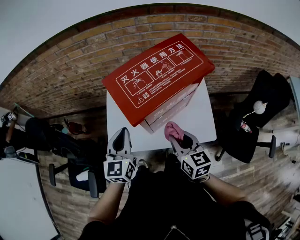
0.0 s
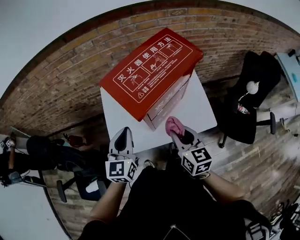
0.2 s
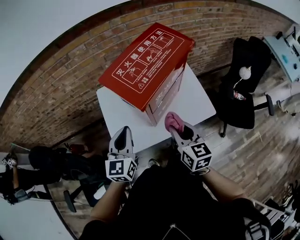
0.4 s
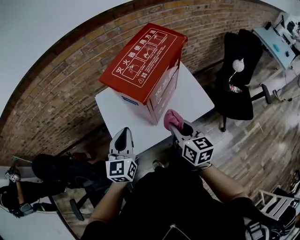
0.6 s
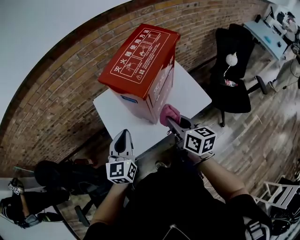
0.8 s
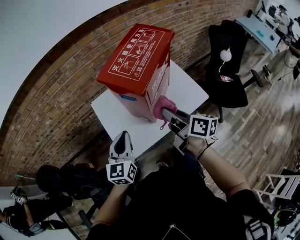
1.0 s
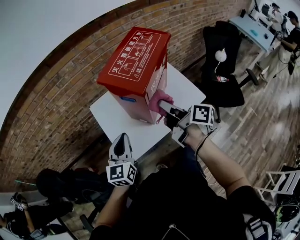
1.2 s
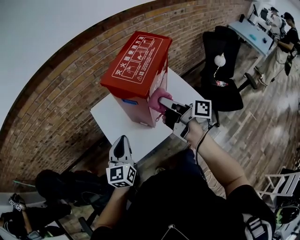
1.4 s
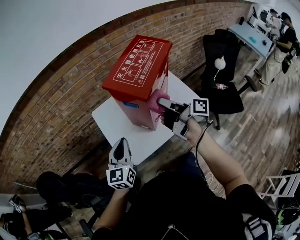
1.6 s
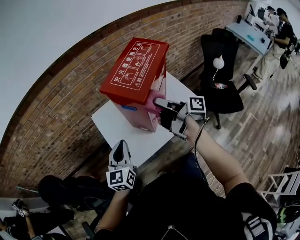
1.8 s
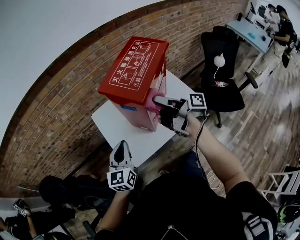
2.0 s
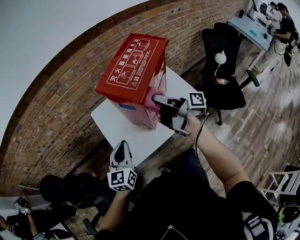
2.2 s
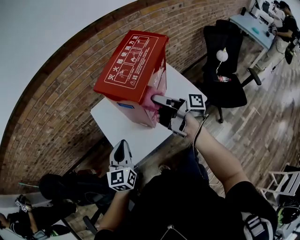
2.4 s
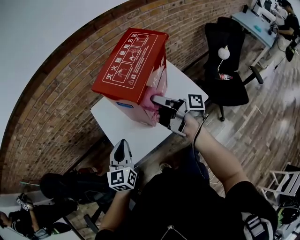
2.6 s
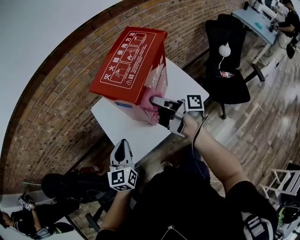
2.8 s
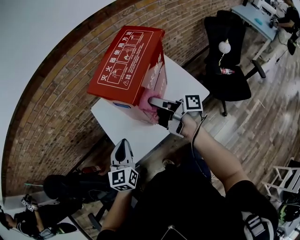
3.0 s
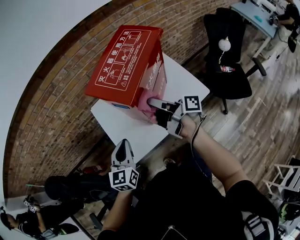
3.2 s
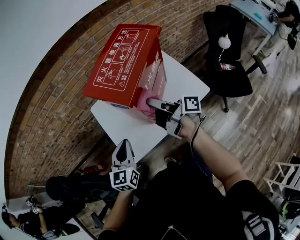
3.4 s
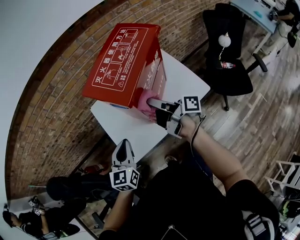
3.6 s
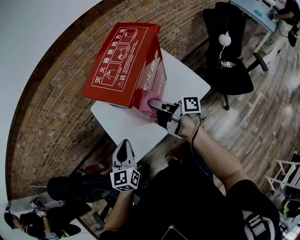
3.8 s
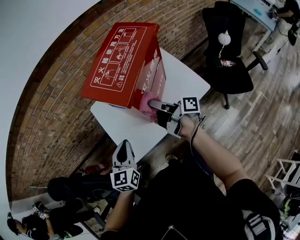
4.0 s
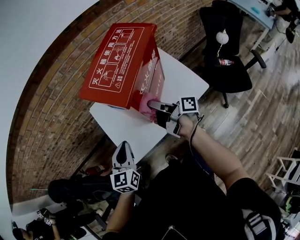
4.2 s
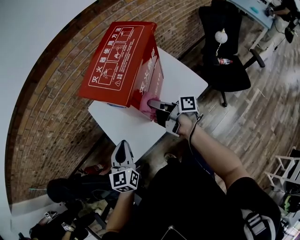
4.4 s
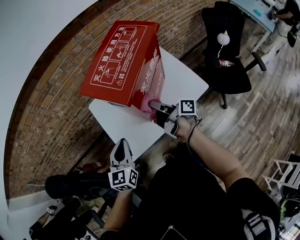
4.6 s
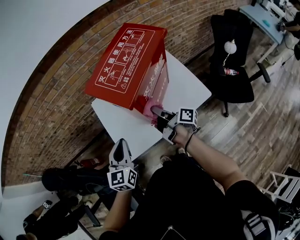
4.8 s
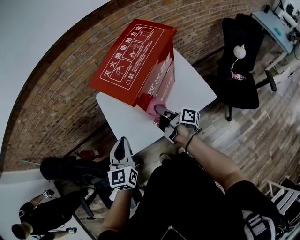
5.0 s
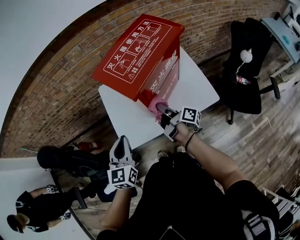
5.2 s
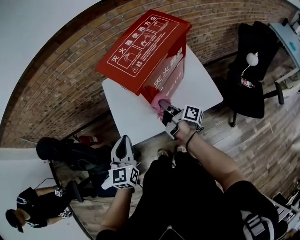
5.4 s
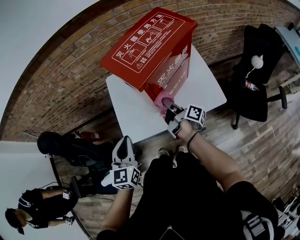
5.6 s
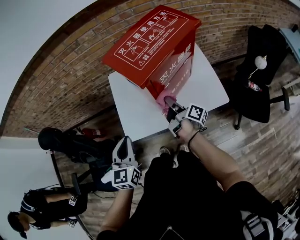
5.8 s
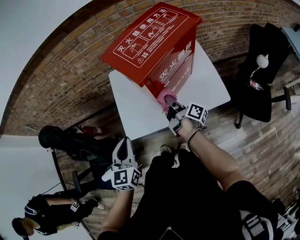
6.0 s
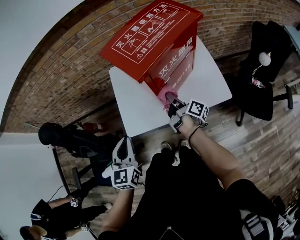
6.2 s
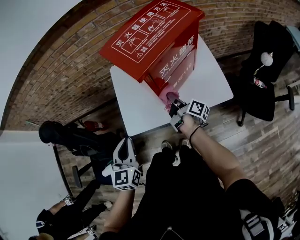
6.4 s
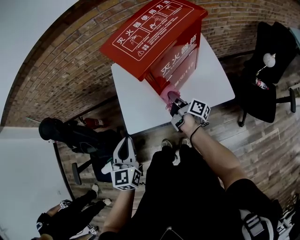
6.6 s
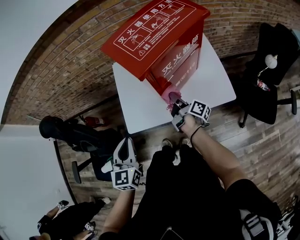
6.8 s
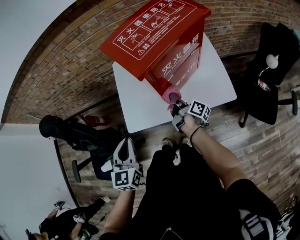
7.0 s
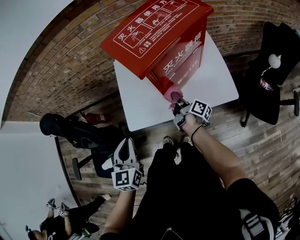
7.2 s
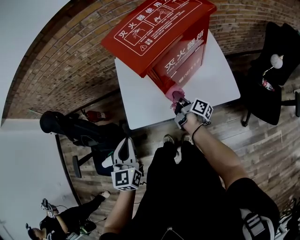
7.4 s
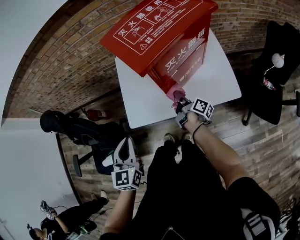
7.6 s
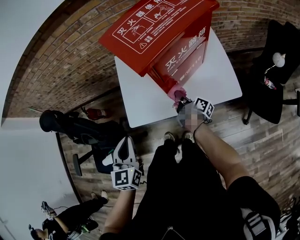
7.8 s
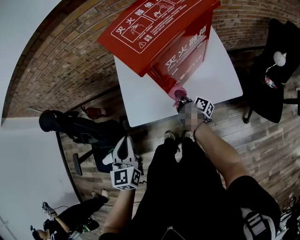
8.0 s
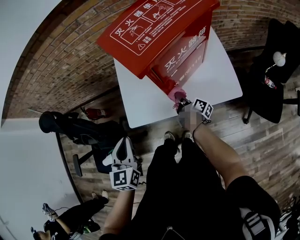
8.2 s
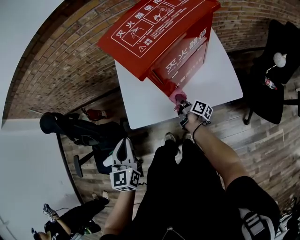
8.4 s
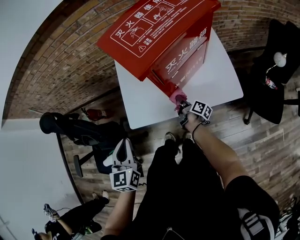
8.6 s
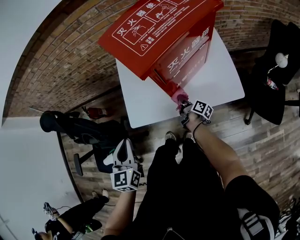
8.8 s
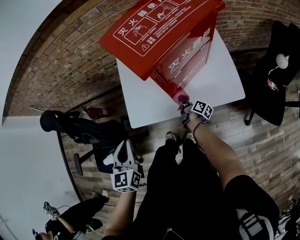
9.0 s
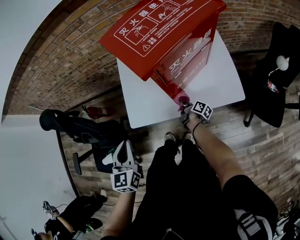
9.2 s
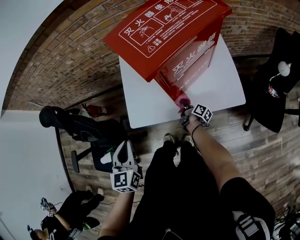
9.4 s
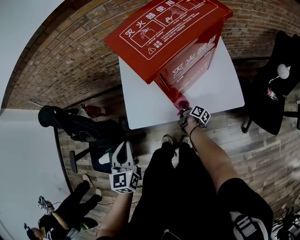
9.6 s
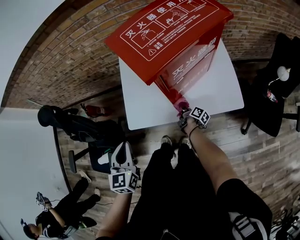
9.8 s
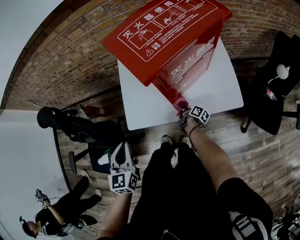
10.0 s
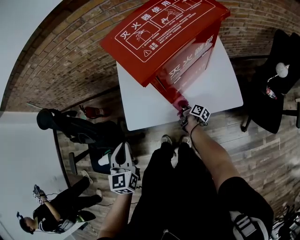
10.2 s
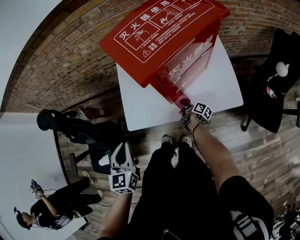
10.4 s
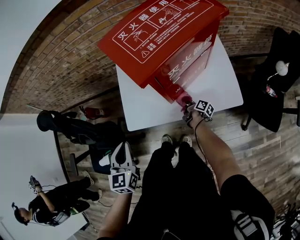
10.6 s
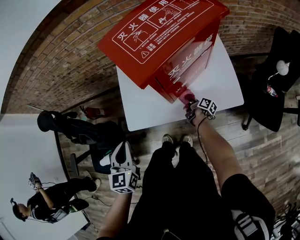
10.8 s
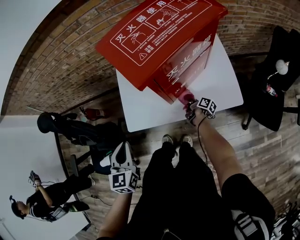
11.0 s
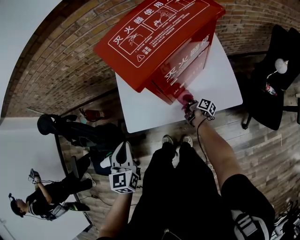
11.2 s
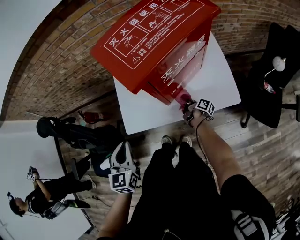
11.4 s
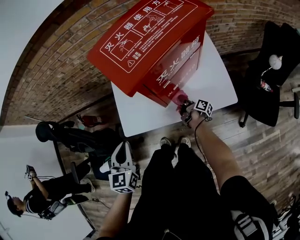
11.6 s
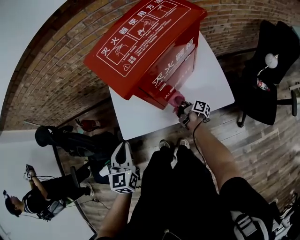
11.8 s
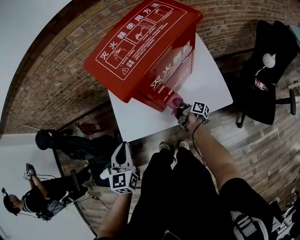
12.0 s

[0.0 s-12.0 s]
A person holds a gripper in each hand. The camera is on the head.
0.0 to 1.6 s: The left gripper shifts by roughly 10 cm, and changes its angle by some 20 degrees.
4.4 to 6.0 s: The left gripper changes place by some 10 cm, and turns by about 20 degrees.
10.4 to 12.0 s: The left gripper moves roughly 5 cm.

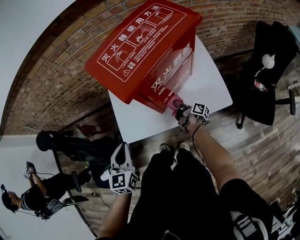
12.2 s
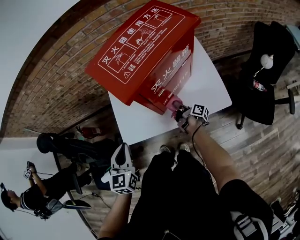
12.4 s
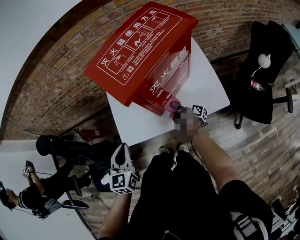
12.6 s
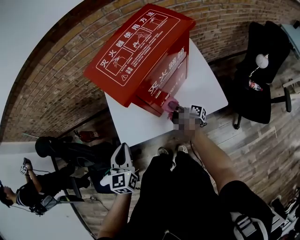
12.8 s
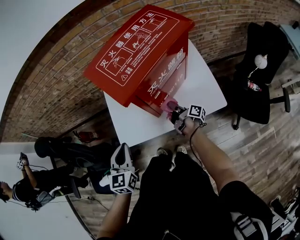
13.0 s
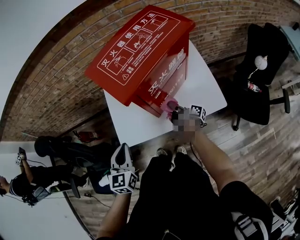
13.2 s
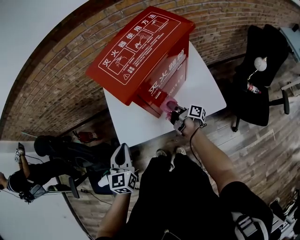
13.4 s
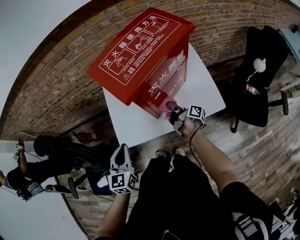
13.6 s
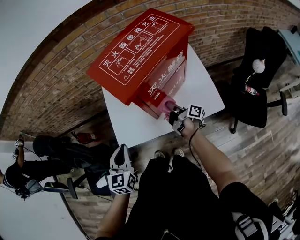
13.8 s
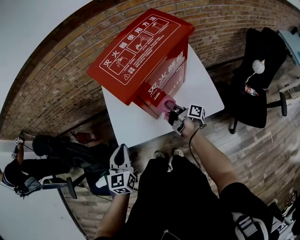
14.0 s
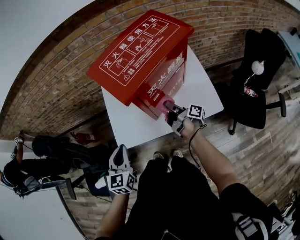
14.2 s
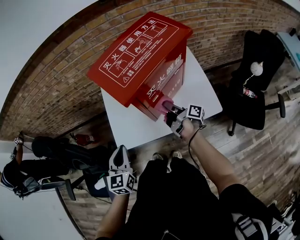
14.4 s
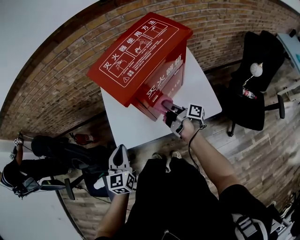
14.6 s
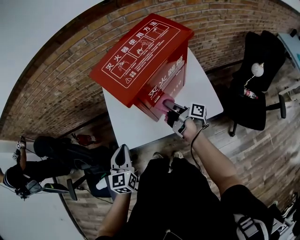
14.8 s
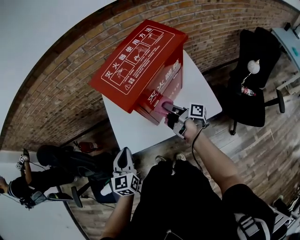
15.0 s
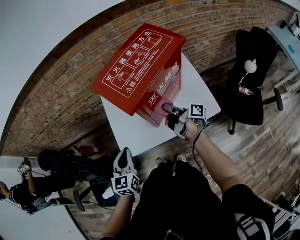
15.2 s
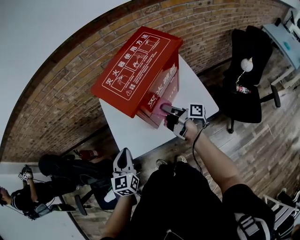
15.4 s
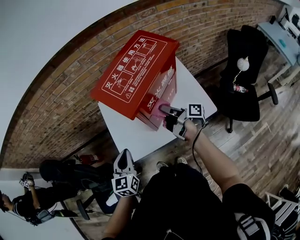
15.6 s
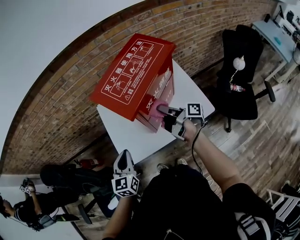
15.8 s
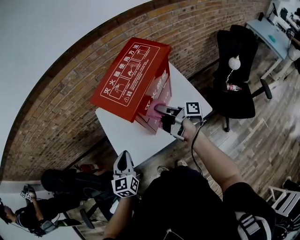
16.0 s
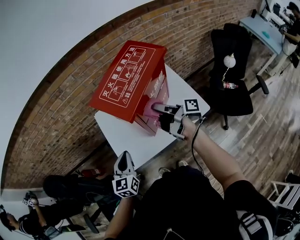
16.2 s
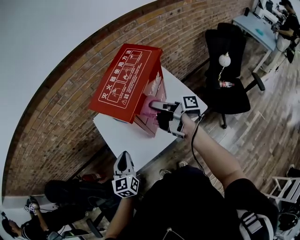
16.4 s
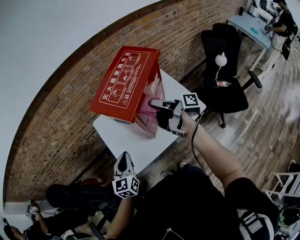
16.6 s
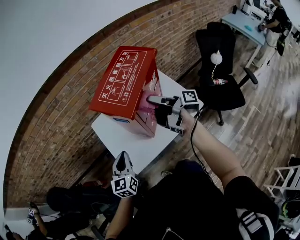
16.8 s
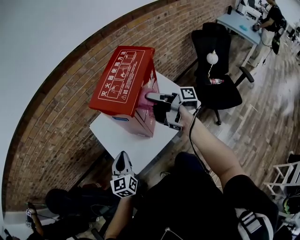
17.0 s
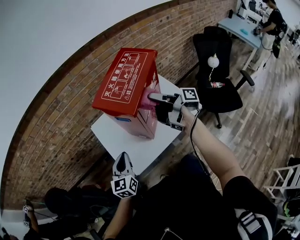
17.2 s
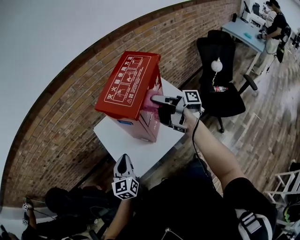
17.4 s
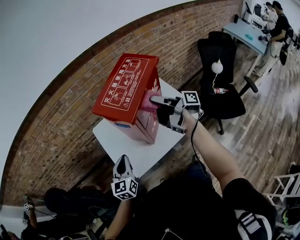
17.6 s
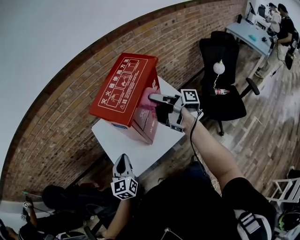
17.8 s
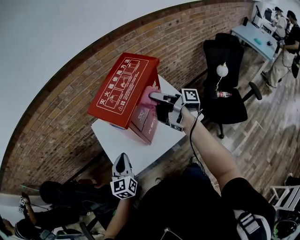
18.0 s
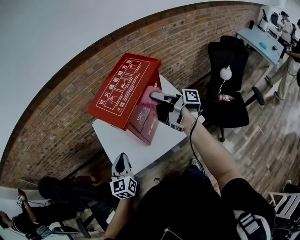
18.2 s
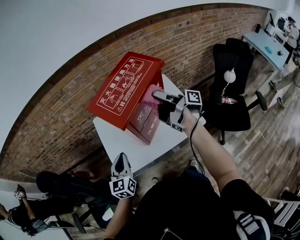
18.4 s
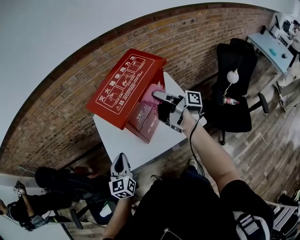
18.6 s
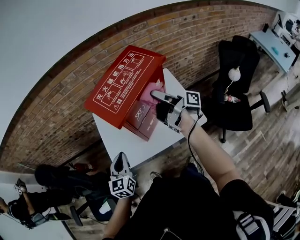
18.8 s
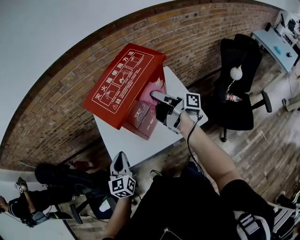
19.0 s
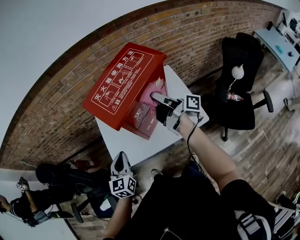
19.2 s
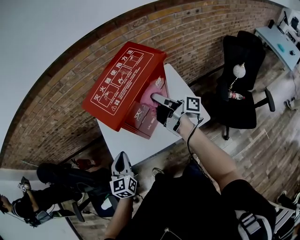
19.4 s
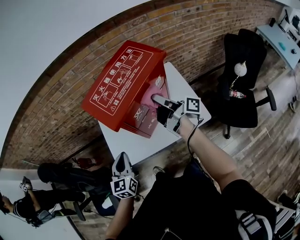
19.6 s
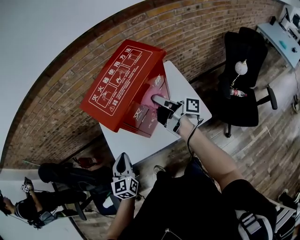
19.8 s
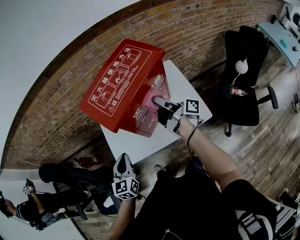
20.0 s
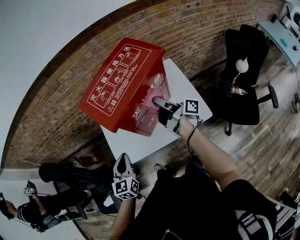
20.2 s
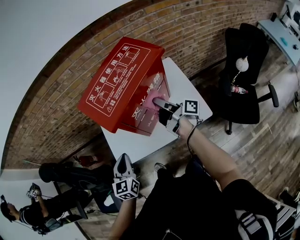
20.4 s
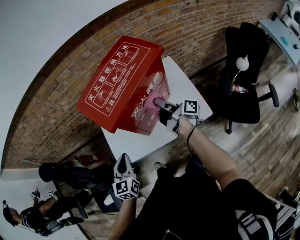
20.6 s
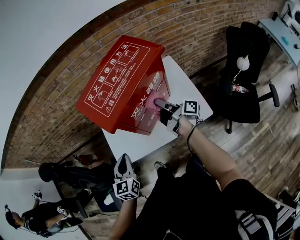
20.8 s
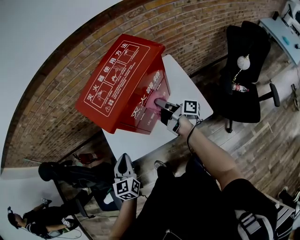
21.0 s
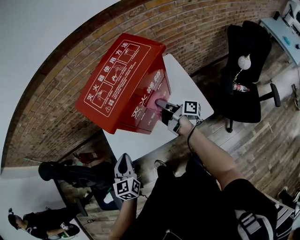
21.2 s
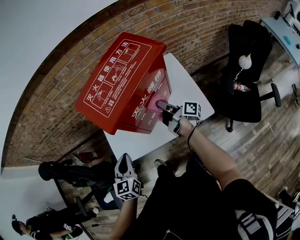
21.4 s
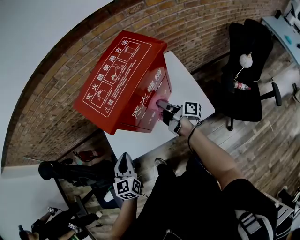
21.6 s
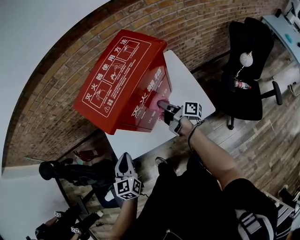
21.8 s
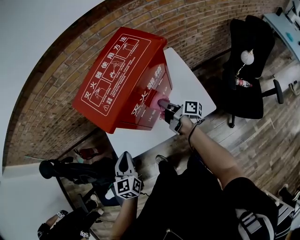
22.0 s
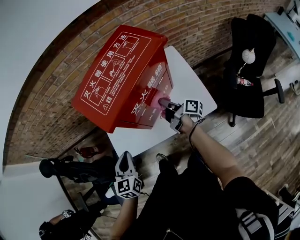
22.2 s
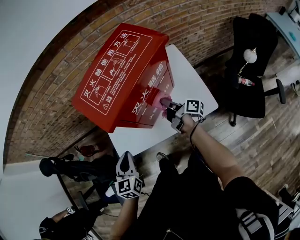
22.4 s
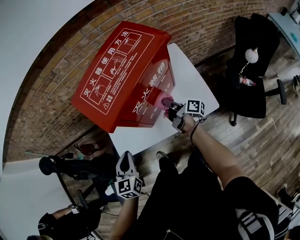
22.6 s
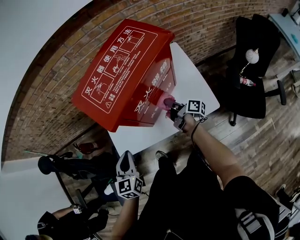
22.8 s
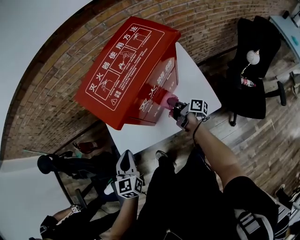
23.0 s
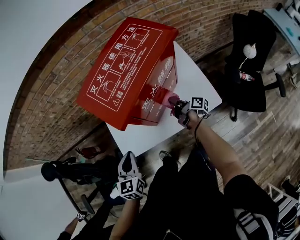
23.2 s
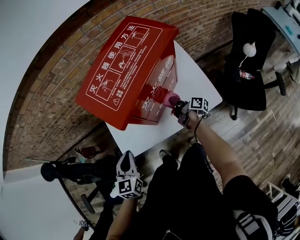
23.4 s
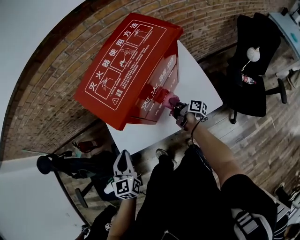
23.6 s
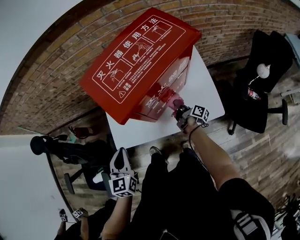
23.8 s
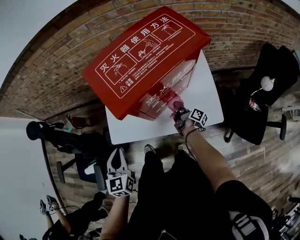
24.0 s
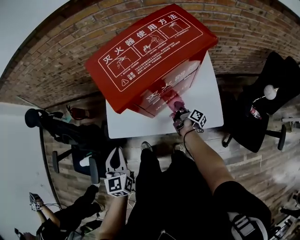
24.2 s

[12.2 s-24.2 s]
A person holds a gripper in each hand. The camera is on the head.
22.6 to 24.2 s: The left gripper shifts by roughly 5 cm.

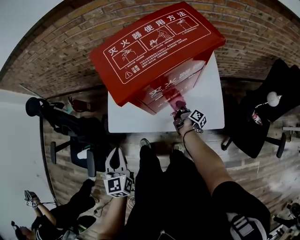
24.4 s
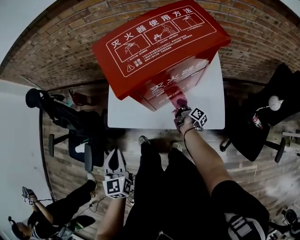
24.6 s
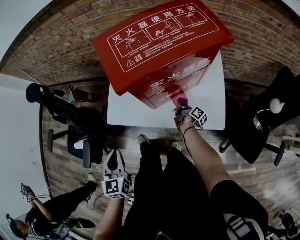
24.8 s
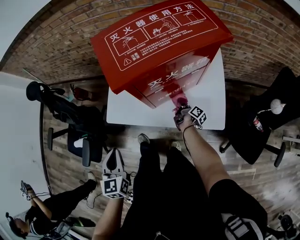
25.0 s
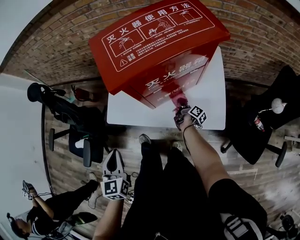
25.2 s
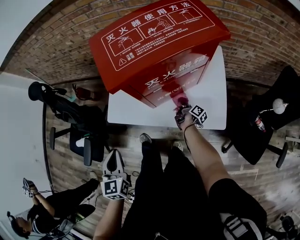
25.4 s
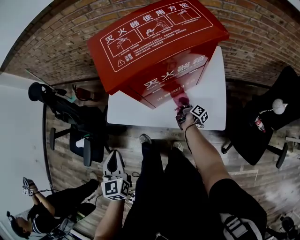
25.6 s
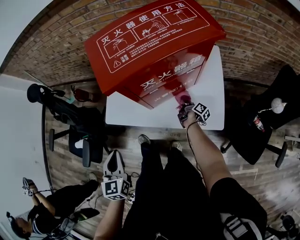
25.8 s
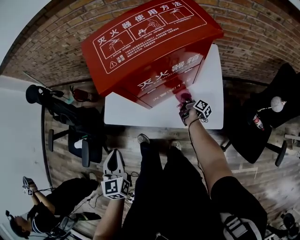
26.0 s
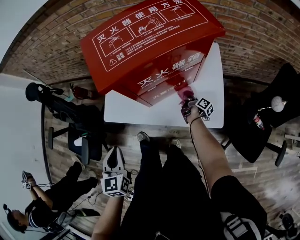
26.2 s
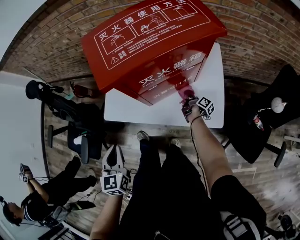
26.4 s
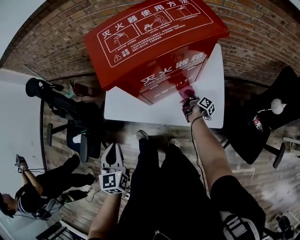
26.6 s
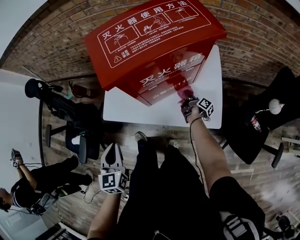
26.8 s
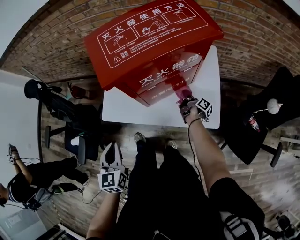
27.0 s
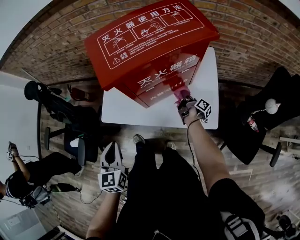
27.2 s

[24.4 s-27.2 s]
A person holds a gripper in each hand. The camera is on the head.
24.4 to 25.8 s: The left gripper shifts by approximately 5 cm.
